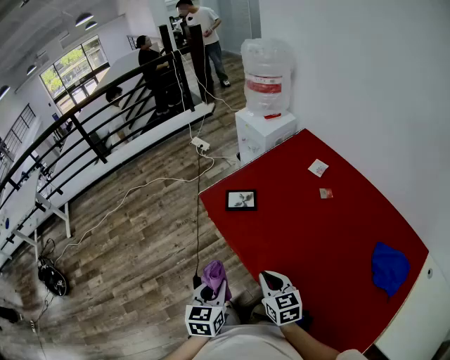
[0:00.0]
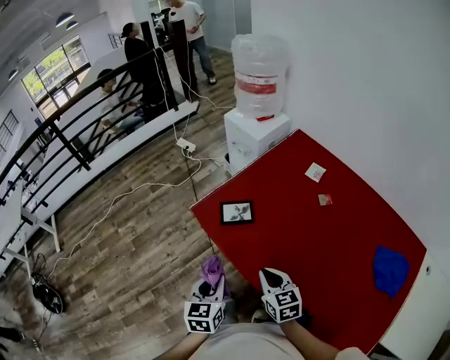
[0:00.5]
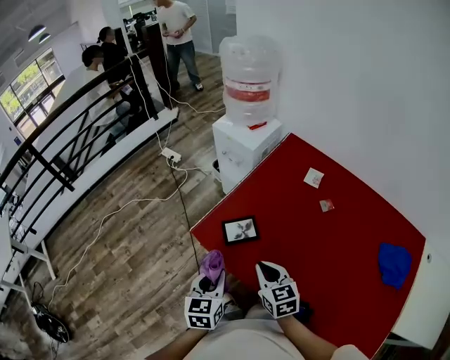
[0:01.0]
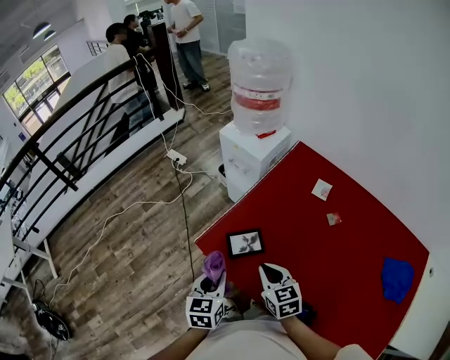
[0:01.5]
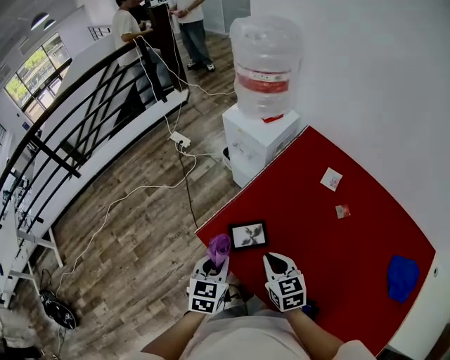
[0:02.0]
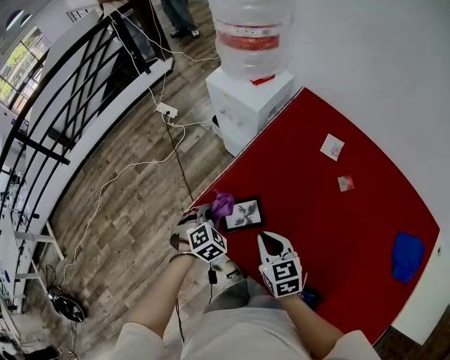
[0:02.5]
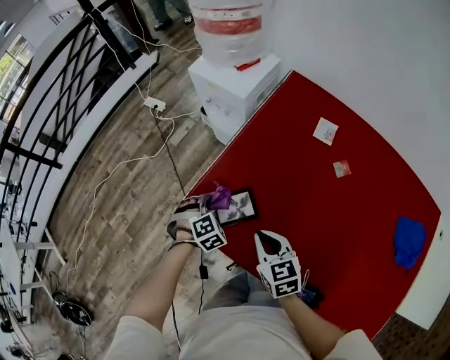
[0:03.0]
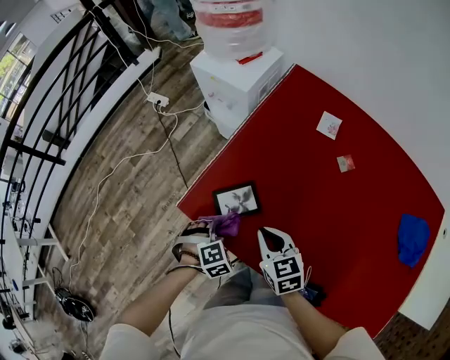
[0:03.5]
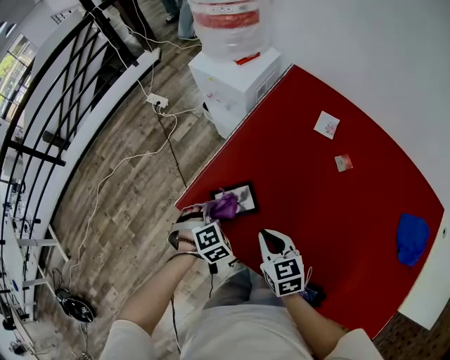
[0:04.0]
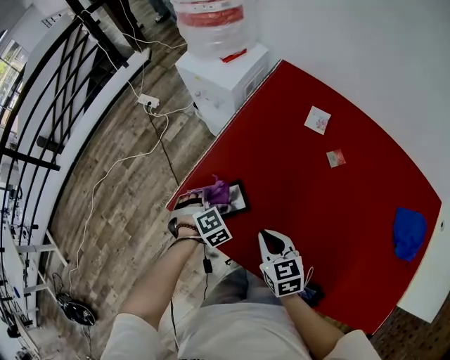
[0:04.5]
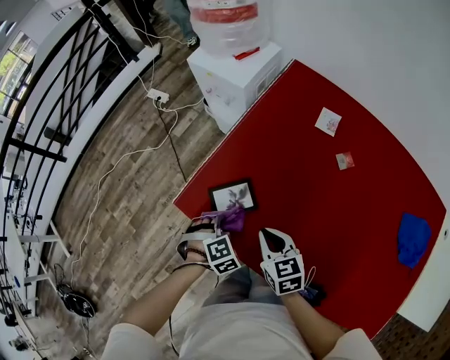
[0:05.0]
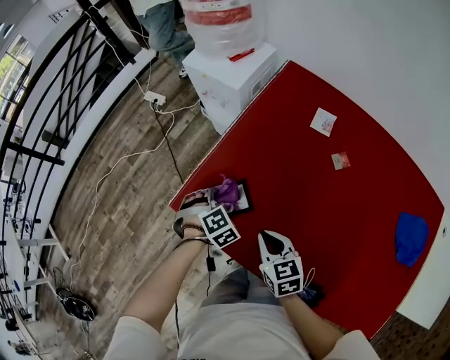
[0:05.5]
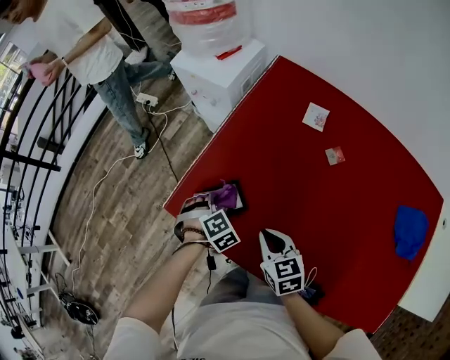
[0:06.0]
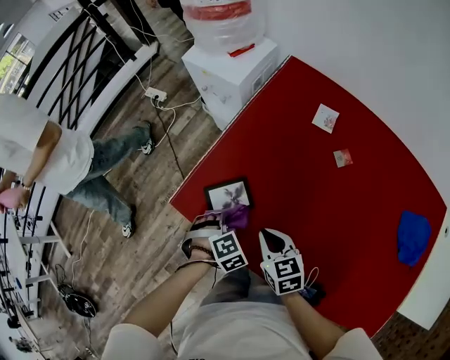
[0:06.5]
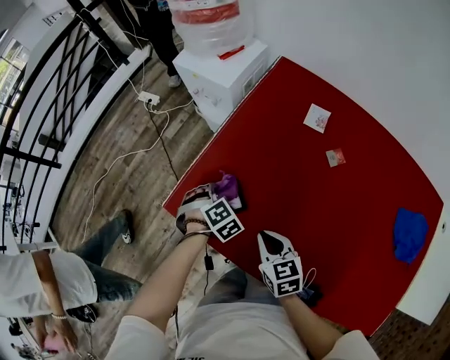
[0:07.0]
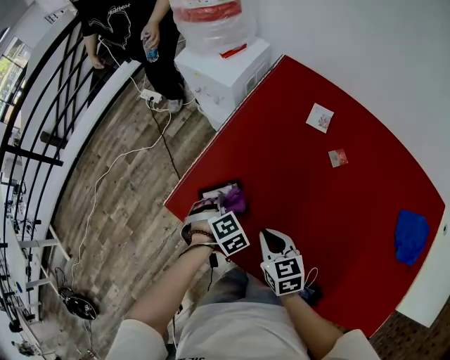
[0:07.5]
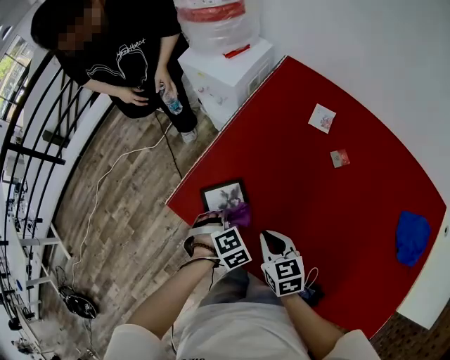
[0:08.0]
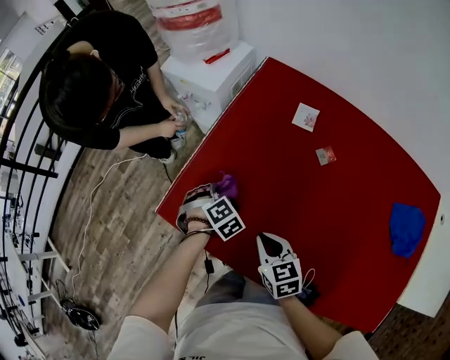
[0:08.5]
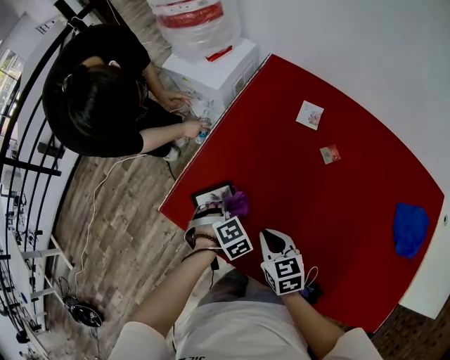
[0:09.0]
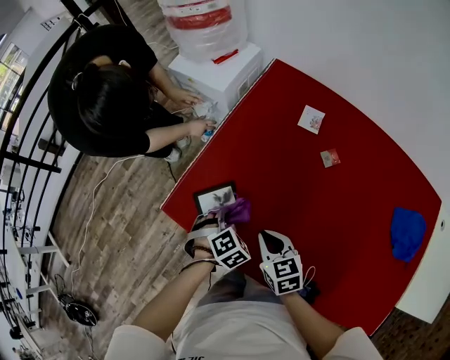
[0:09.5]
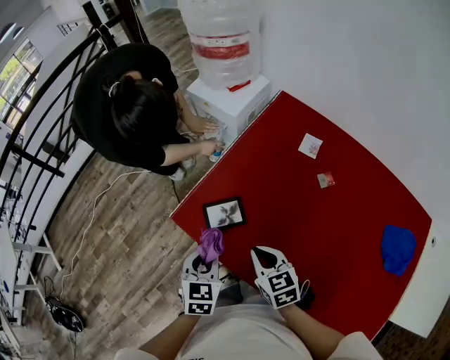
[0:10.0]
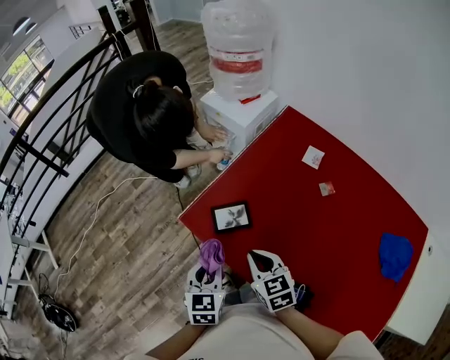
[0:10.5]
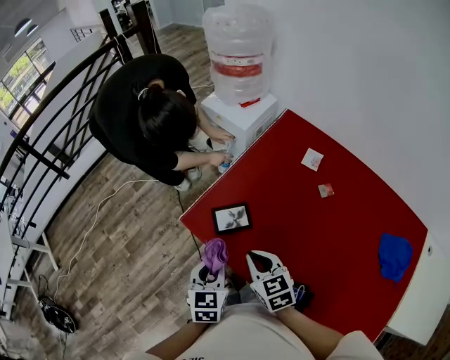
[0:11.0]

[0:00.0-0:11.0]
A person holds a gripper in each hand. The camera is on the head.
0:00.0 to 0:02.0: The two grippers go about 30 cm forward. The left gripper changes its angle by roughly 20 degrees.
0:02.0 to 0:03.5: The right gripper shifts some 5 cm downward. Meanwhile the left gripper moves downward, roughly 15 cm, and rotates around the line of its fingers by about 60 degrees, clockwise from behind.
0:03.5 to 0:05.5: The left gripper goes forward and backward, roughly 10 cm each way, reversing 2 times.
0:05.5 to 0:07.5: The left gripper swings forward and backward, about 10 cm each way, with 2 reversals.
0:07.5 to 0:09.0: The left gripper swings forward and backward, some 10 cm each way, with 2 reversals.
0:09.0 to 0:11.0: The right gripper goes roughly 15 cm upward and to the left; the left gripper moves upward, backward and to the left, roughly 25 cm, and rolls counterclockwise, seen from behind, by roughly 60 degrees.

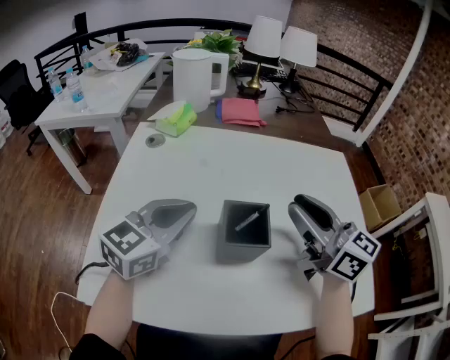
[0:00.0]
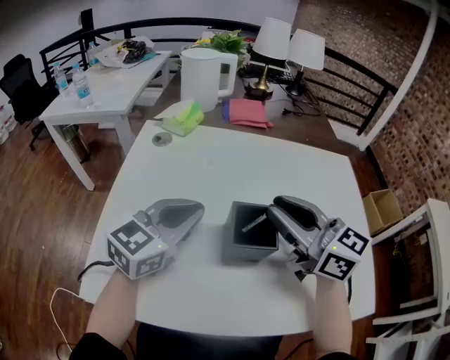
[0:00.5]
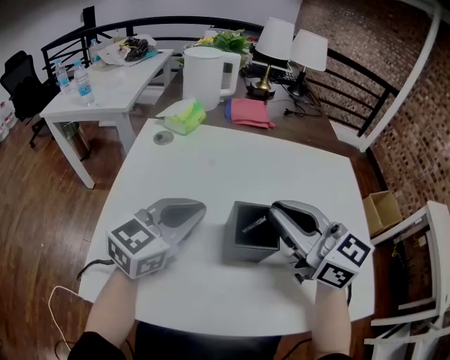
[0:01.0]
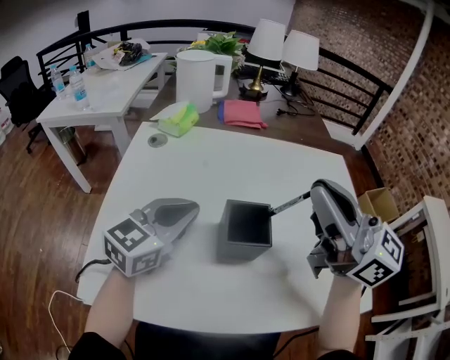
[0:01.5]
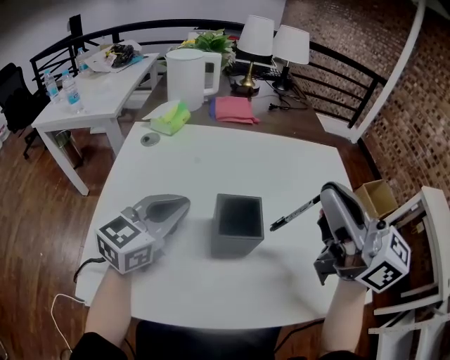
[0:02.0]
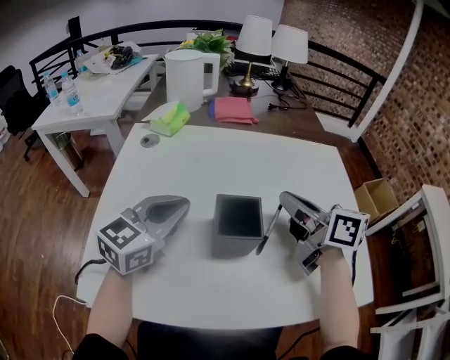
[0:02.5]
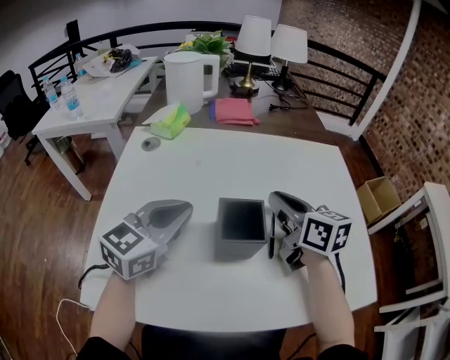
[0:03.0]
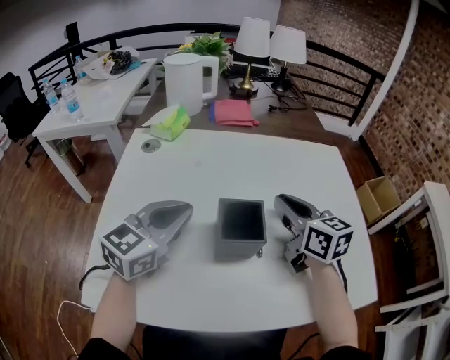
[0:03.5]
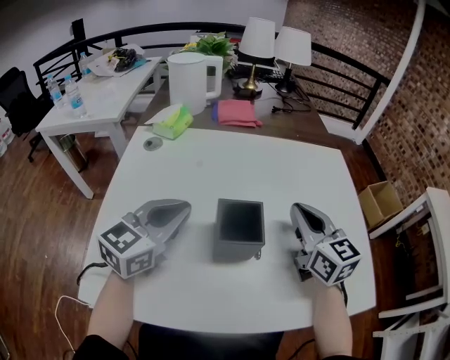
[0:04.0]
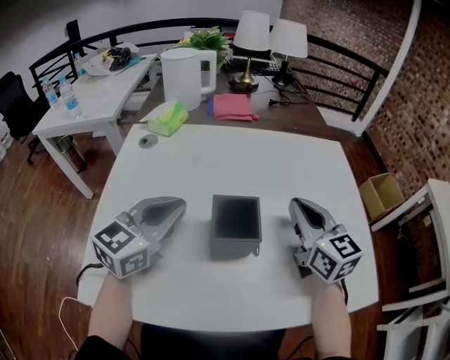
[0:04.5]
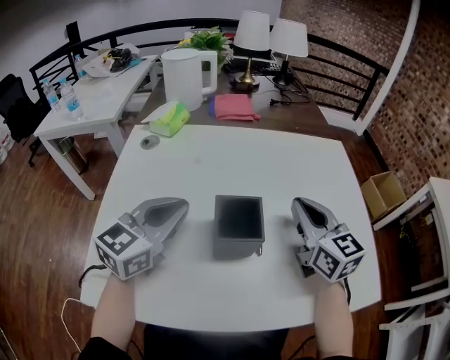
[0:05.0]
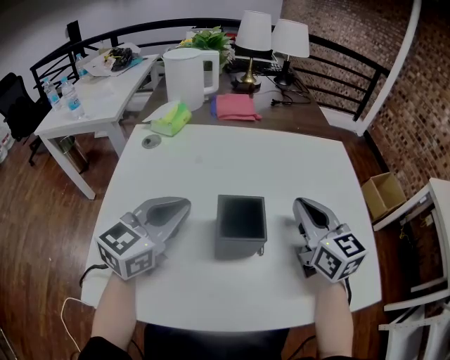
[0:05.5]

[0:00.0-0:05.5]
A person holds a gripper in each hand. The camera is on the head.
0:00.0 to 0:02.0: The right gripper shifts approximately 10 cm upward and backward, and closes.
0:02.0 to 0:03.5: The right gripper moves downward and forward, about 20 cm, and rotates approximately 30 degrees.
0:03.5 to 0:05.5: The grippers move only a little.

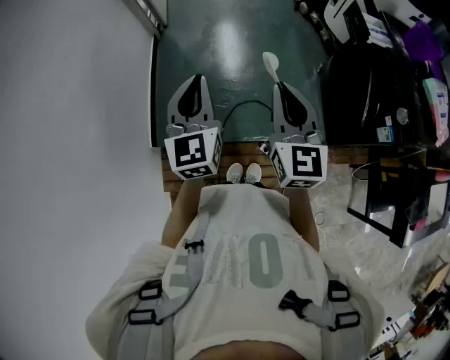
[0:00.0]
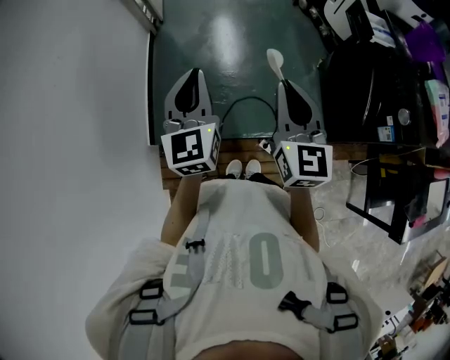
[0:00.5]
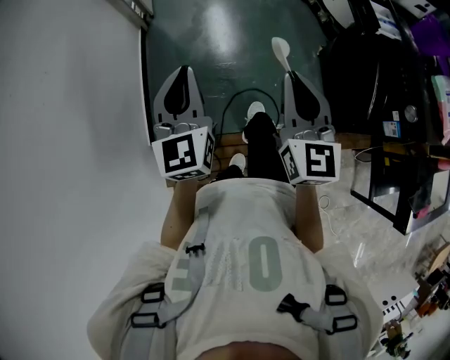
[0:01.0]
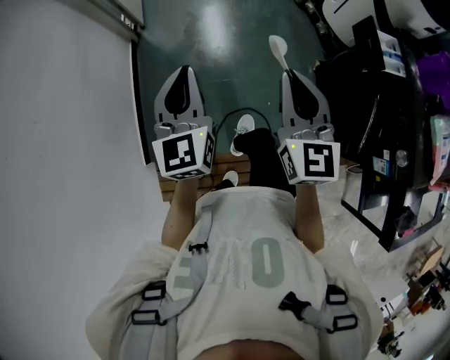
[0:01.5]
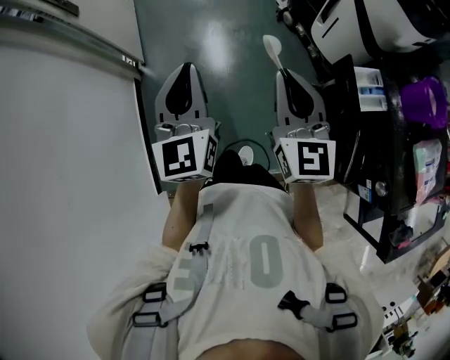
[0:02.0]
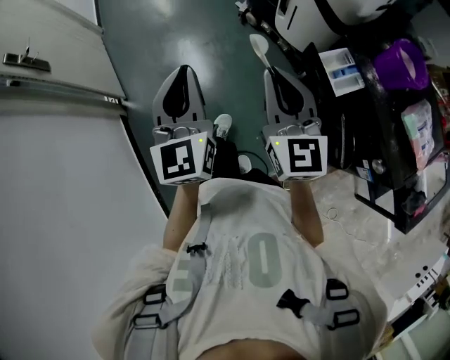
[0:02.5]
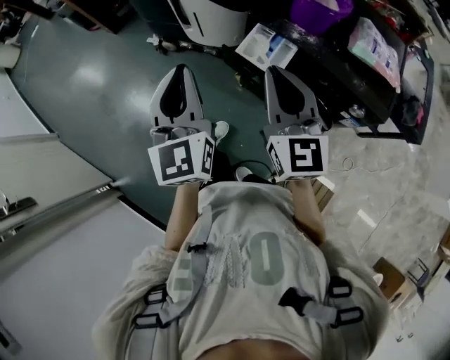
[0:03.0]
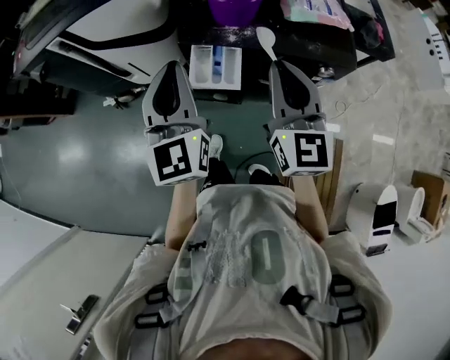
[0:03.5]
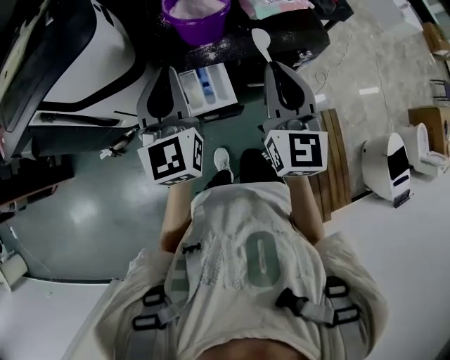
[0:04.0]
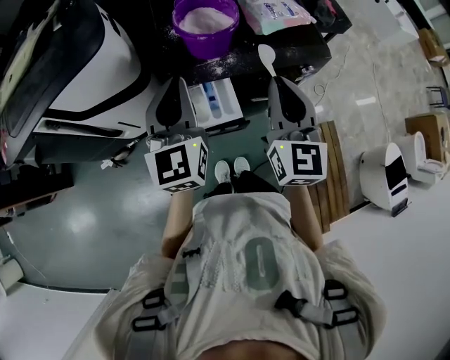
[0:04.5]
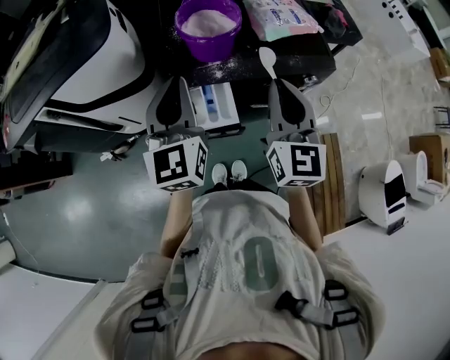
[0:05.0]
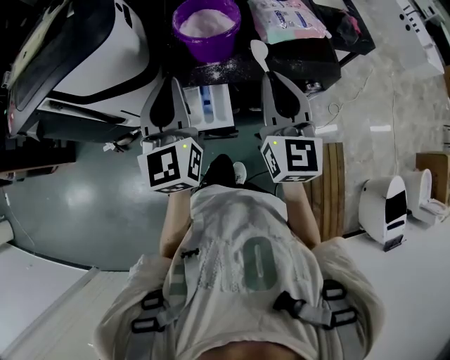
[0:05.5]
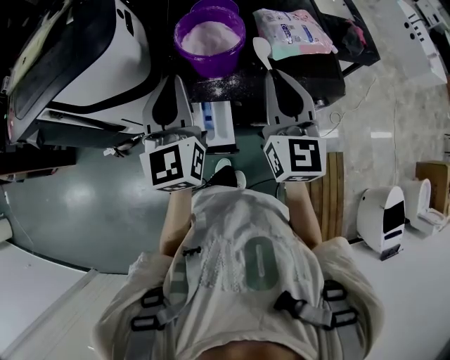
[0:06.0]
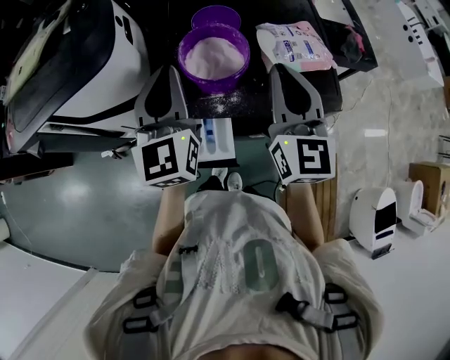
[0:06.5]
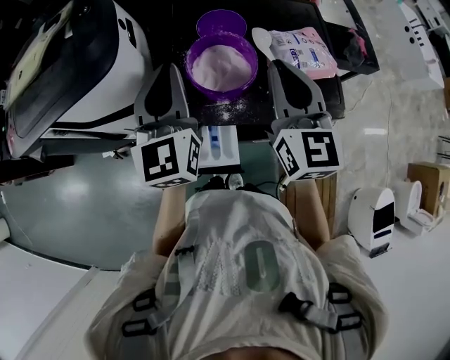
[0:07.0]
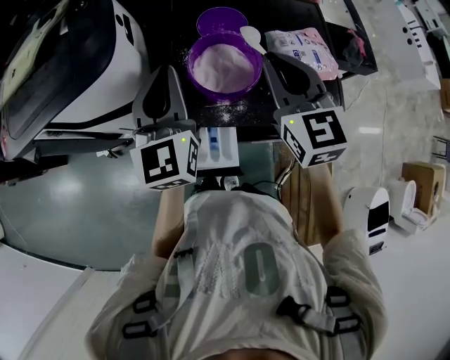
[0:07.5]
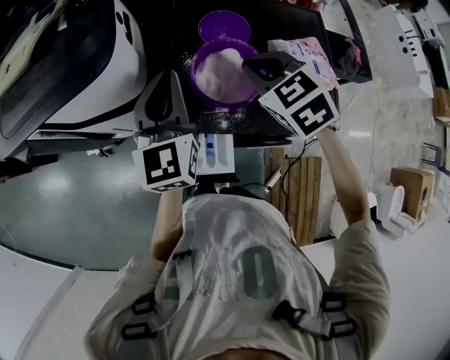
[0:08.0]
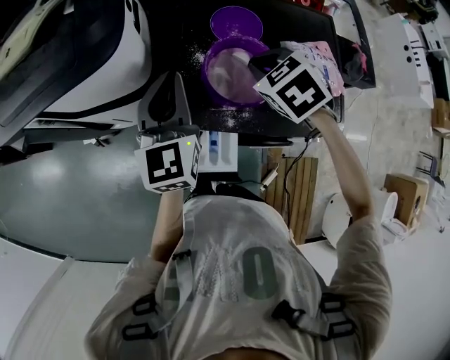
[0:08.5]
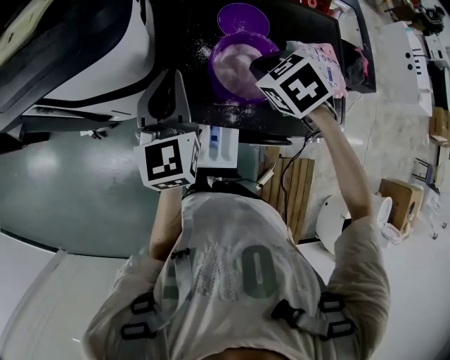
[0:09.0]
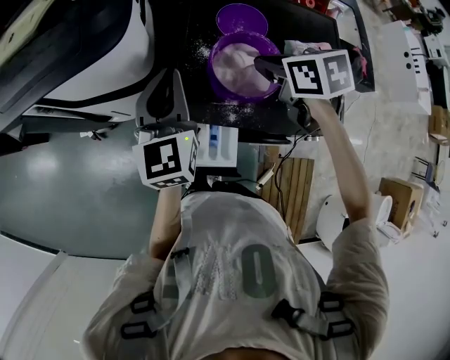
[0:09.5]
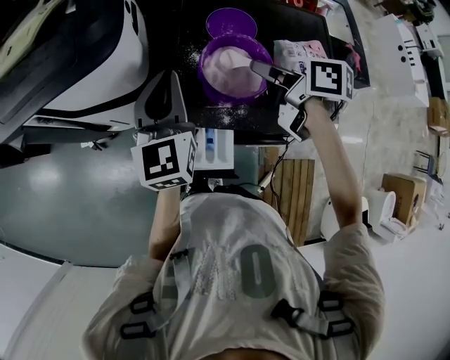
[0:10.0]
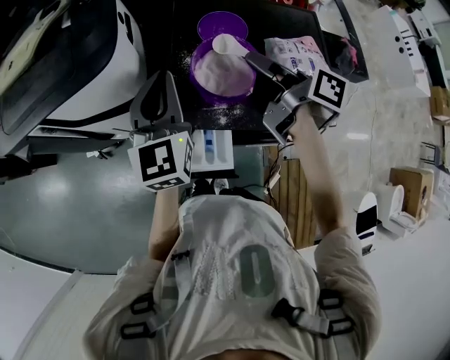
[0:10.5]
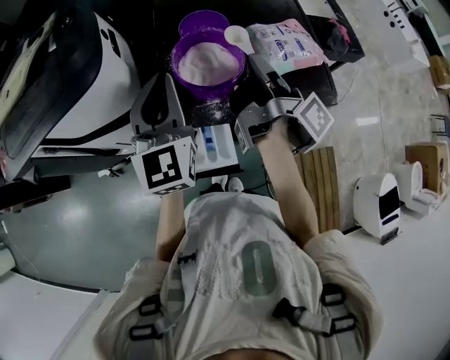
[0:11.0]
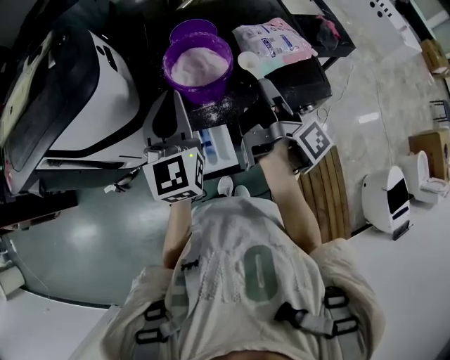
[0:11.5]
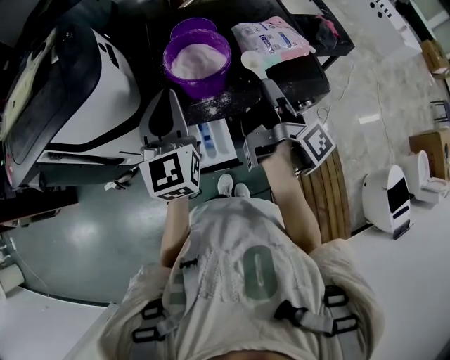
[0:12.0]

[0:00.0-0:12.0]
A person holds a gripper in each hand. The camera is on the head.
0:00.0 to 0:02.0: Both grippers are carried forward, about 40 cm.
0:02.0 to 0:04.0: The right gripper moves about 35 cm, and turns by roughly 100 degrees; the left gripper moves approximately 50 cm, and turns by some 90 degrees.
0:04.0 to 0:06.0: The right gripper moves forward, roughly 10 cm. The left gripper is displaced forward by roughly 5 cm.
0:06.0 to 0:08.0: The left gripper moves forward, roughly 15 cm, while the right gripper moves forward and to the left, roughly 20 cm, and angles its fingers downward, by roughly 50 degrees.
0:08.0 to 0:10.0: The right gripper rolls clockwise, seen from behind, by about 60 degrees.
0:10.0 to 0:12.0: The right gripper shifts by some 20 cm, and tips its fingers upward by roughly 30 degrees. The left gripper changes place by about 10 cm.
